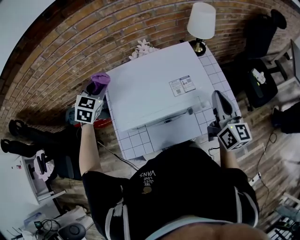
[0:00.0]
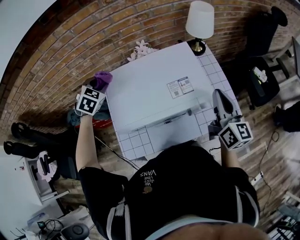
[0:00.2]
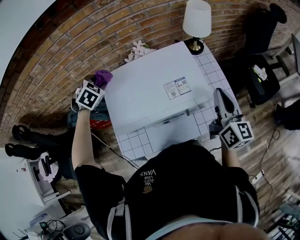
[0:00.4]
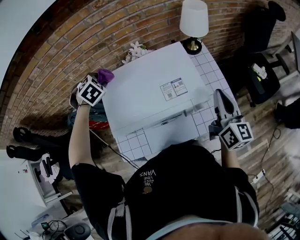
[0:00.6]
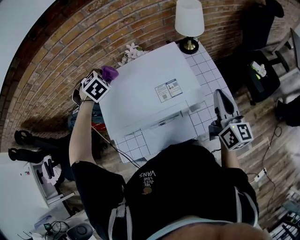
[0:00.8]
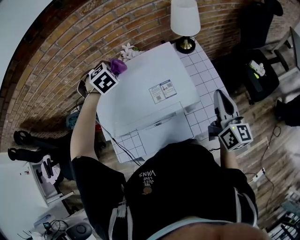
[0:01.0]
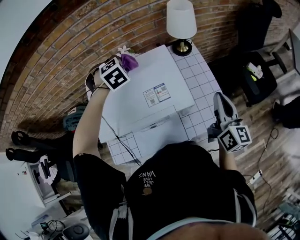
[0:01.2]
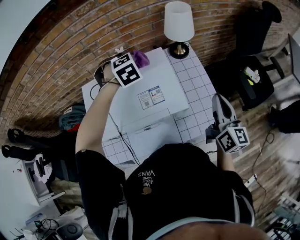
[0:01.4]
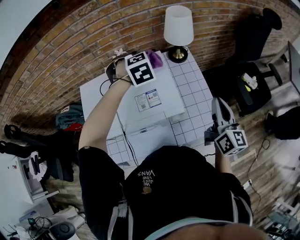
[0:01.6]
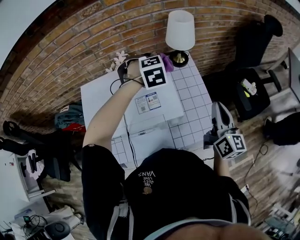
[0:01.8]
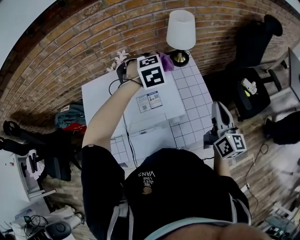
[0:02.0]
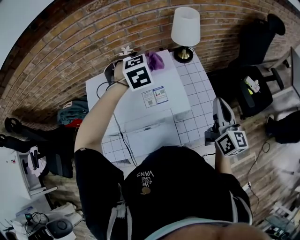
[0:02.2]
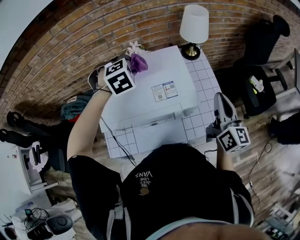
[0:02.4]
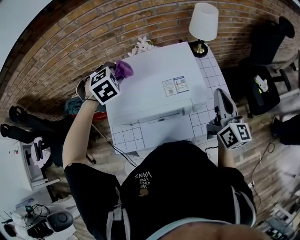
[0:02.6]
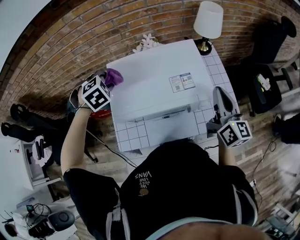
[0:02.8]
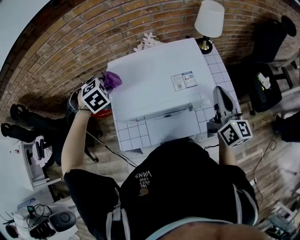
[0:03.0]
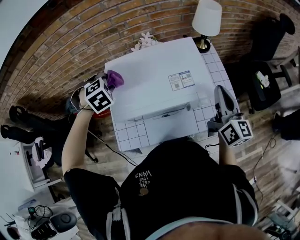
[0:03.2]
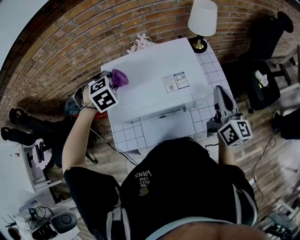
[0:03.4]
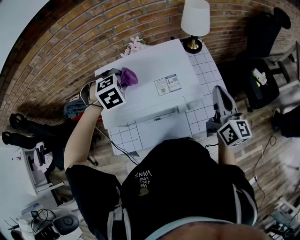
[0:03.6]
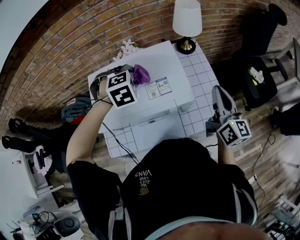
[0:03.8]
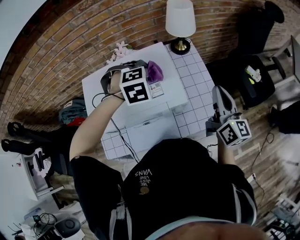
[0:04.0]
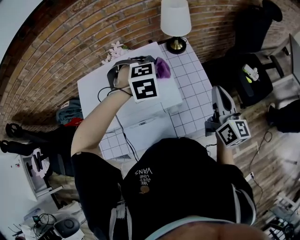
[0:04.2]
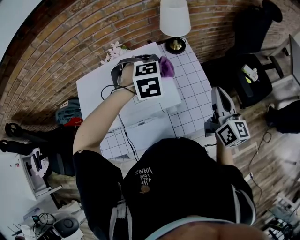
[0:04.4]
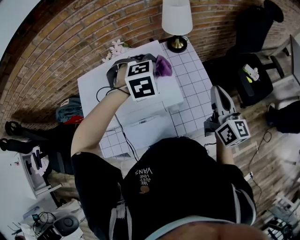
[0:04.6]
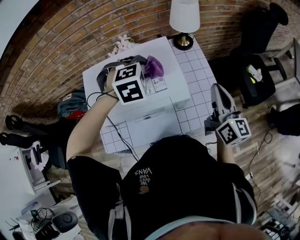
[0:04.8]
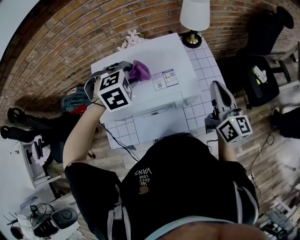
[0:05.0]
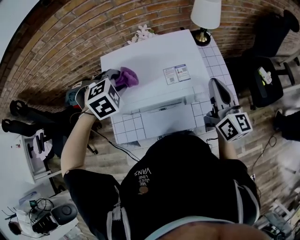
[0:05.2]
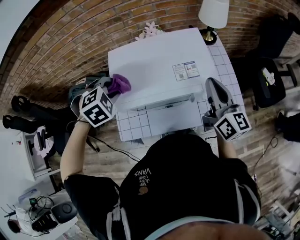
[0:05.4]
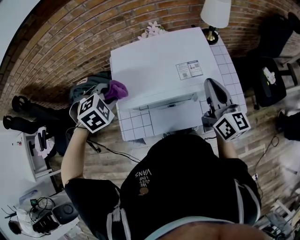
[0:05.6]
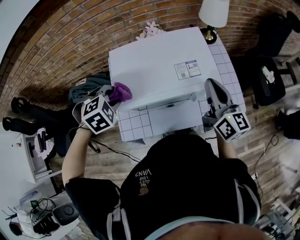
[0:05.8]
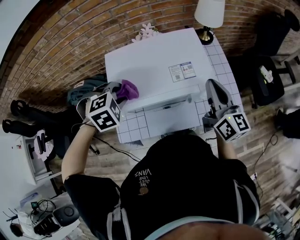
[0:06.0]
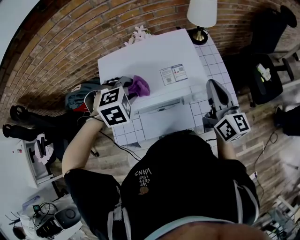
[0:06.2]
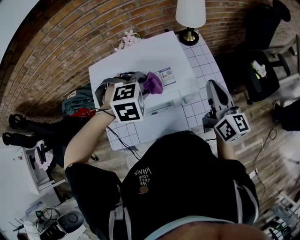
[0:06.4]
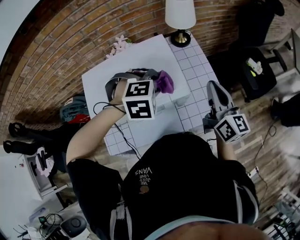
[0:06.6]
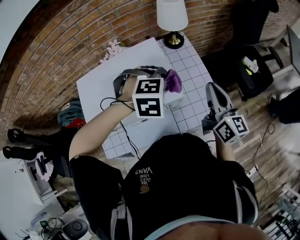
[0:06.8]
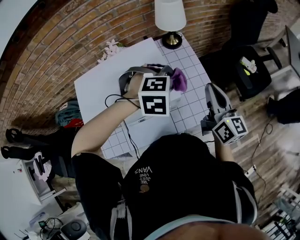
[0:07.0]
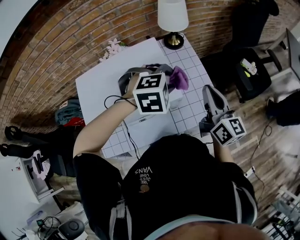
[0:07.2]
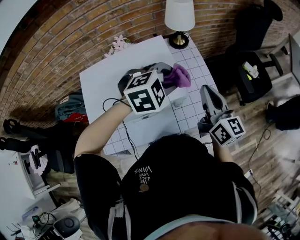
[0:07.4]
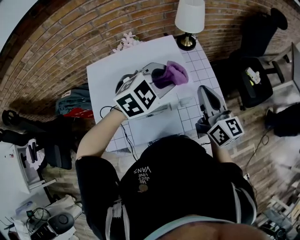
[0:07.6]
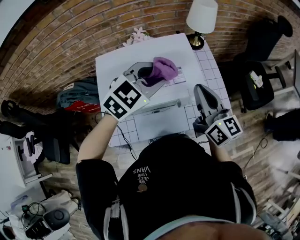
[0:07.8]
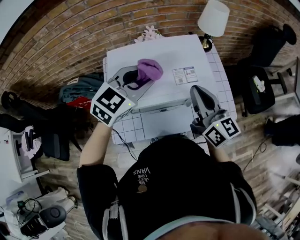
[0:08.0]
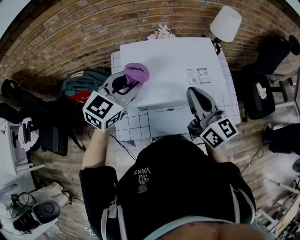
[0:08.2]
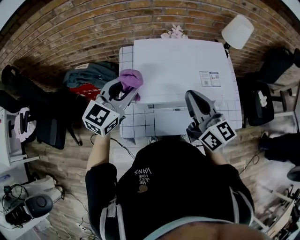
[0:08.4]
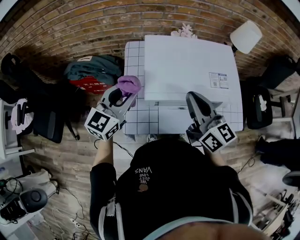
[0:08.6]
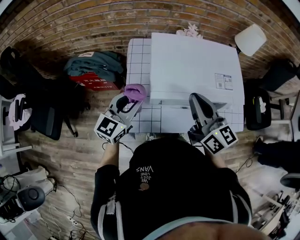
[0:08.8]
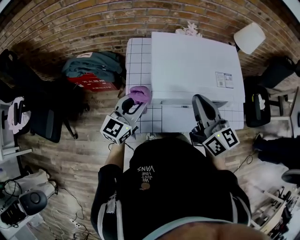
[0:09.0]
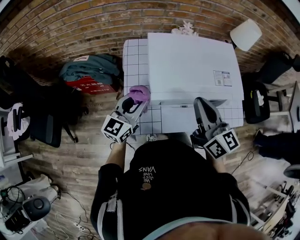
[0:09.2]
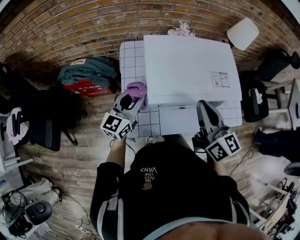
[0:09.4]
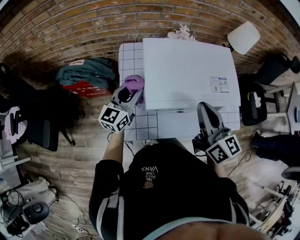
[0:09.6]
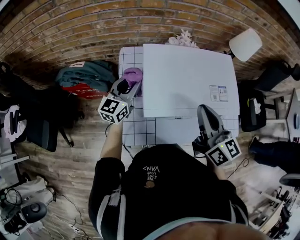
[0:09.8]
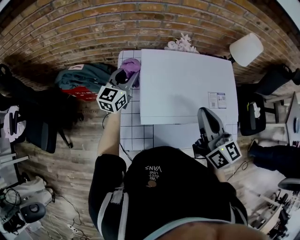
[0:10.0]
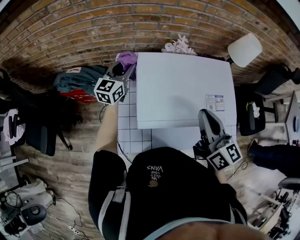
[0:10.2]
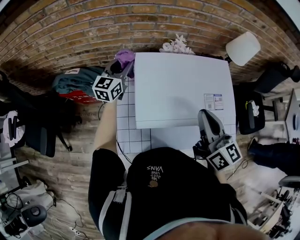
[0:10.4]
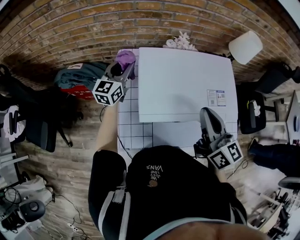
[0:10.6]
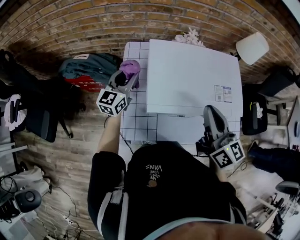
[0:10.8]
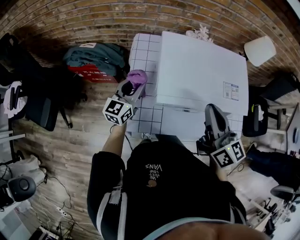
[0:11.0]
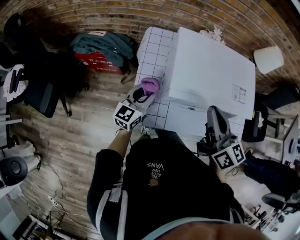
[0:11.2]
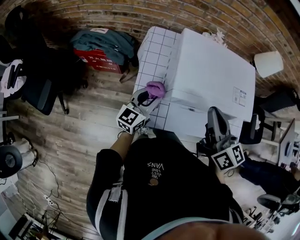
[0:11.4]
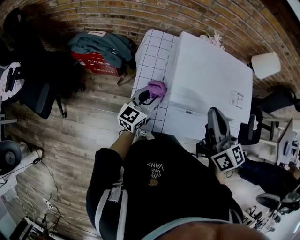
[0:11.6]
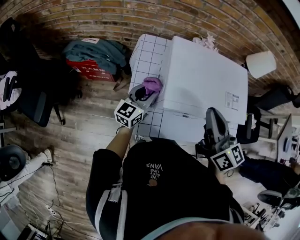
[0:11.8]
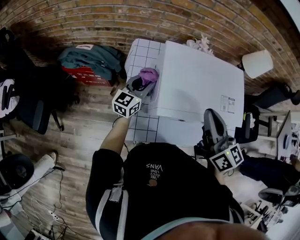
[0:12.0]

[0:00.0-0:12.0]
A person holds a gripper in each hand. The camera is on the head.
0:00.0 to 0:01.6: The right gripper moves to the right, some 15 cm. The left gripper heads to the right, covering approximately 35 cm, and rotates roughly 40 degrees.
0:01.6 to 0:03.0: The right gripper travels to the left by approximately 15 cm; the left gripper moves to the left and backward, approximately 35 cm.
0:03.0 to 0:04.4: The left gripper is displaced to the right by roughly 40 cm, and changes its angle by about 30 degrees, while the right gripper travels to the right by roughly 15 cm.
0:04.4 to 0:06.0: The left gripper moves to the left and backward, about 35 cm. Meanwhile the right gripper goes some 20 cm to the left.
0:06.0 to 0:07.6: The left gripper changes place by about 30 cm, and points its fingers some 30 degrees further upward.
0:07.6 to 0:09.0: The right gripper moves roughly 30 cm, while the left gripper ends up some 40 cm from where it was, and angles its fingers upward, by some 30 degrees.
0:09.0 to 0:10.4: The right gripper moves to the right and forward, approximately 10 cm. Meanwhile the left gripper heads forward, covering some 25 cm.
0:10.4 to 0:12.0: The right gripper is displaced to the left by roughly 5 cm. The left gripper shifts approximately 15 cm backward and downward.

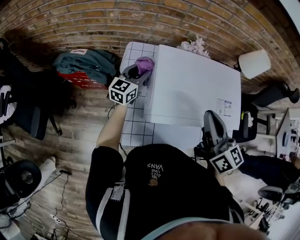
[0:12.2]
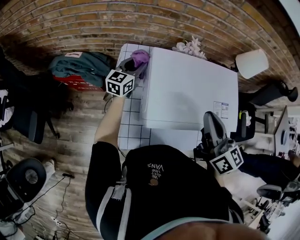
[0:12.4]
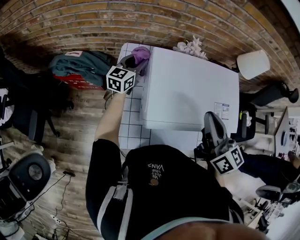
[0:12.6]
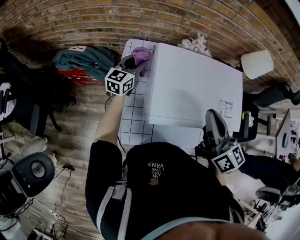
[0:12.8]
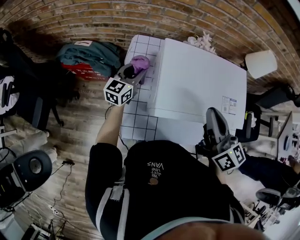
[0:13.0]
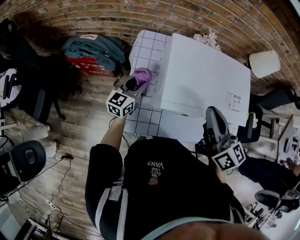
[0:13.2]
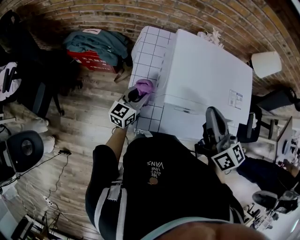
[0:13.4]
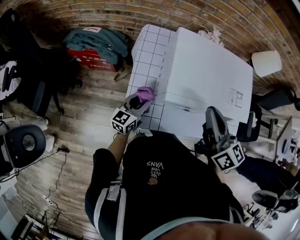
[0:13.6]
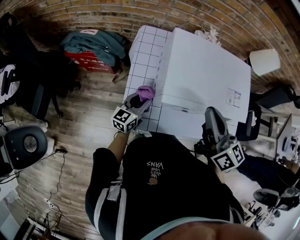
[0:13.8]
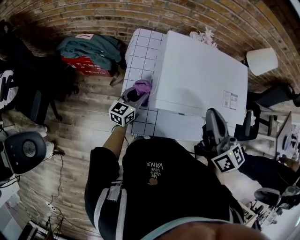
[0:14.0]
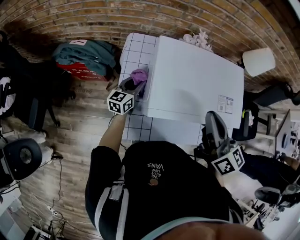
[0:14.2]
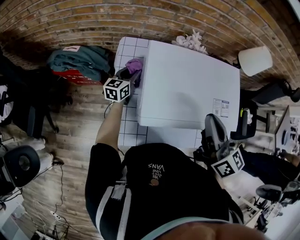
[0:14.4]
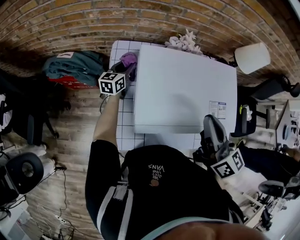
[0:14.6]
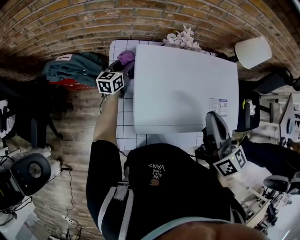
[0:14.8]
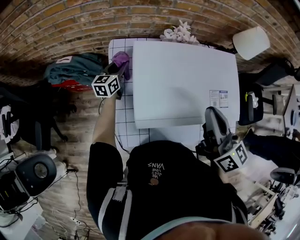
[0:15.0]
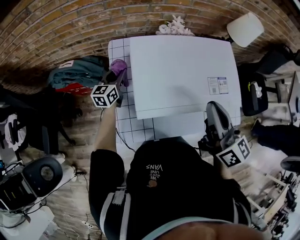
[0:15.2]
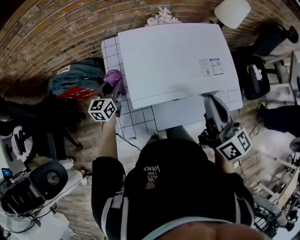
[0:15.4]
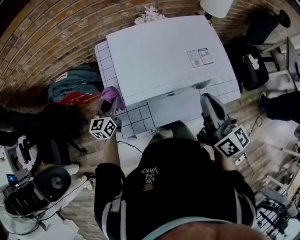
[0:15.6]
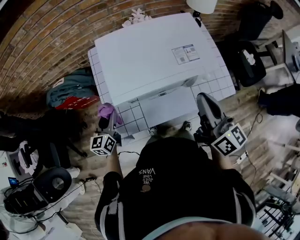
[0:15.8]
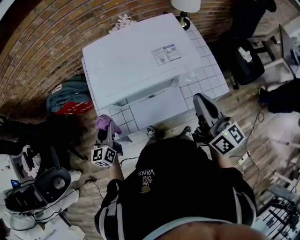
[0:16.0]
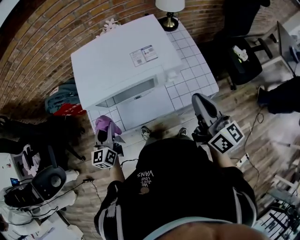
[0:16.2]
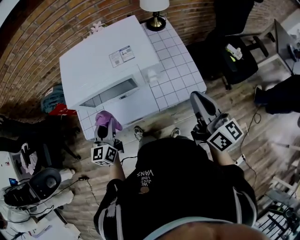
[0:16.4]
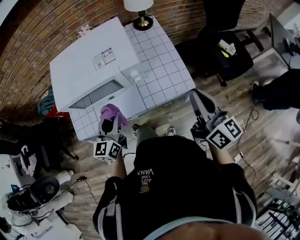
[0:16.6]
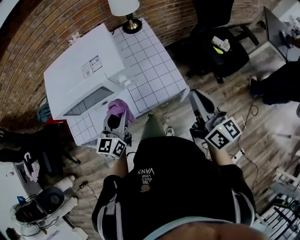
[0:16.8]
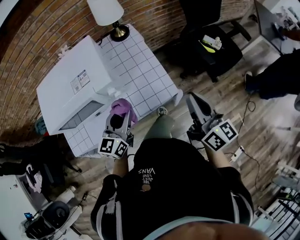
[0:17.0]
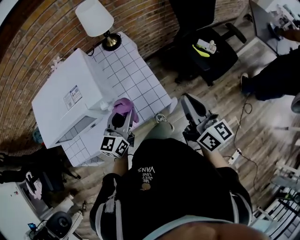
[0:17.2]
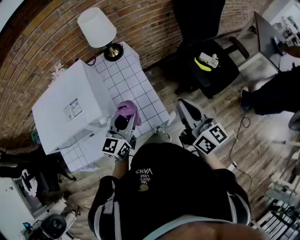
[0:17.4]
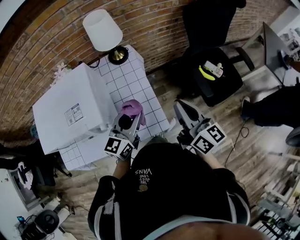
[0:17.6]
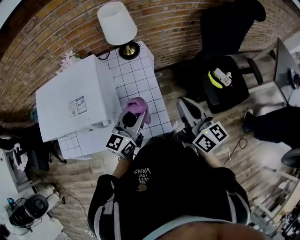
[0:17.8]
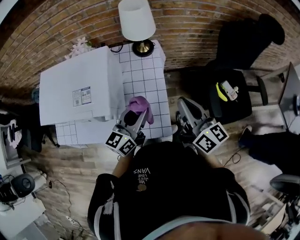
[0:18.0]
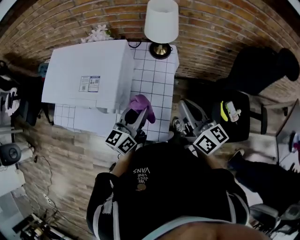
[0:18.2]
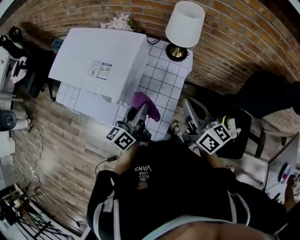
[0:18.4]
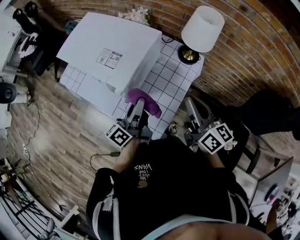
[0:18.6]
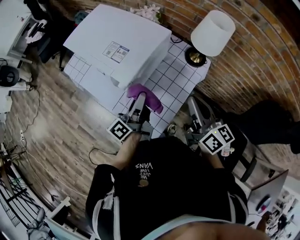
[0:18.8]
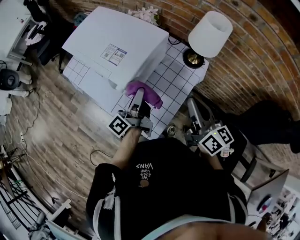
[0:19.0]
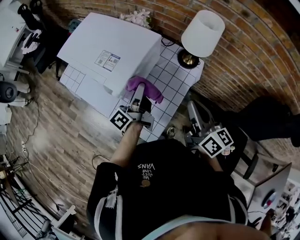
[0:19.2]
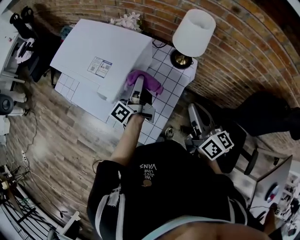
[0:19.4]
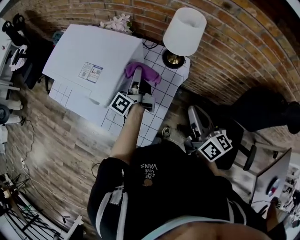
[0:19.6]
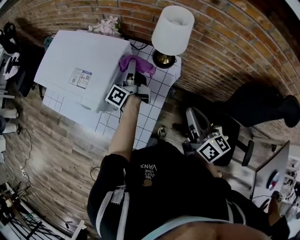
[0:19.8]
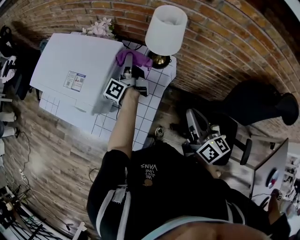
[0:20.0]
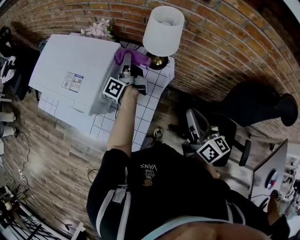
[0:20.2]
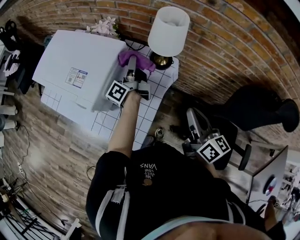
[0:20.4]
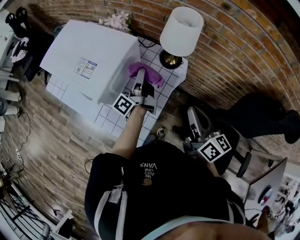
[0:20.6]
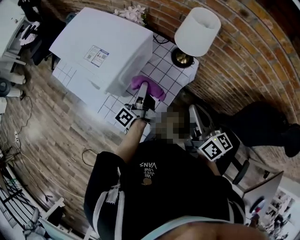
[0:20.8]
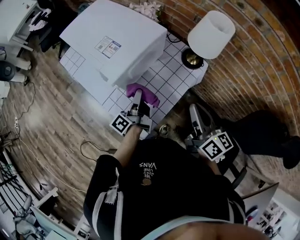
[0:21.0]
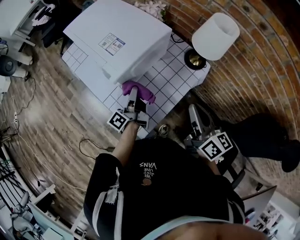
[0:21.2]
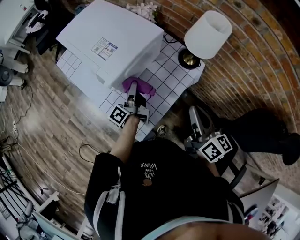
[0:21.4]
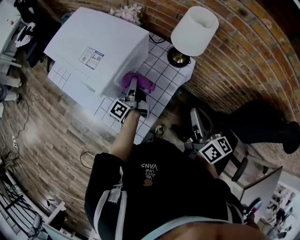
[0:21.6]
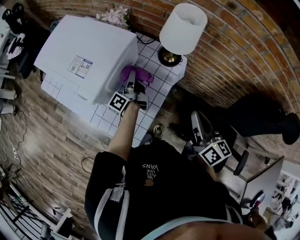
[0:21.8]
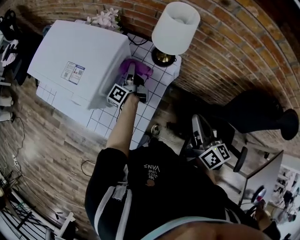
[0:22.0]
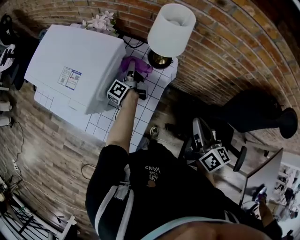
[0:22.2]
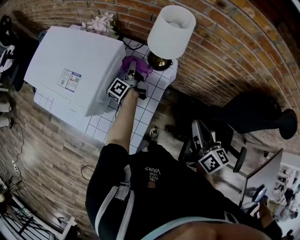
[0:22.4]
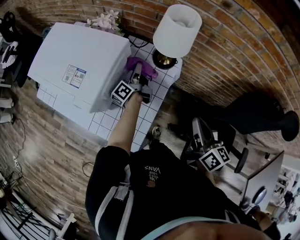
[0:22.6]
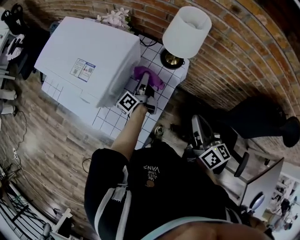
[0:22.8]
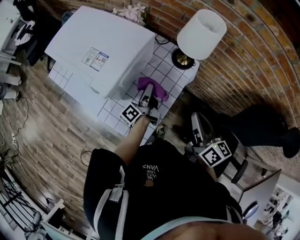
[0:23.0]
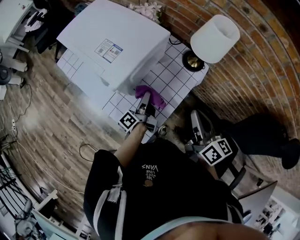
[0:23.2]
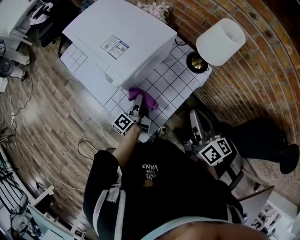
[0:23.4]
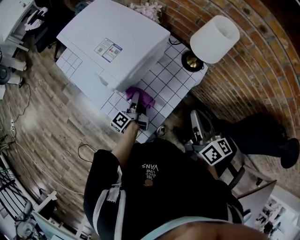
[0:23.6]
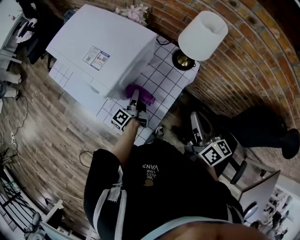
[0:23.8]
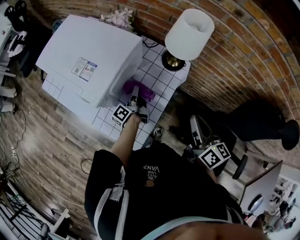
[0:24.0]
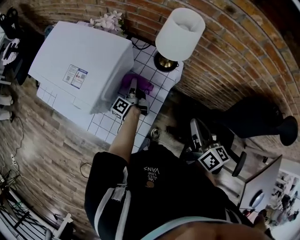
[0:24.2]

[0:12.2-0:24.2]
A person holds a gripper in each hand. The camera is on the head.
0:12.2 to 0:13.8: The left gripper goes some 20 cm backward; the right gripper ends up approximately 5 cm from where it was.
0:13.8 to 0:15.2: The right gripper shifts some 10 cm to the right; the left gripper heads forward, covering roughly 20 cm.
0:15.2 to 0:16.6: The pair of grippers is taken to the right and backward, roughly 40 cm.
0:16.6 to 0:18.2: The left gripper changes place by approximately 30 cm, and rotates about 20 degrees, while the right gripper ends up roughly 25 cm from where it was, and changes its angle by approximately 30 degrees.
0:18.2 to 0:19.8: The left gripper ends up approximately 20 cm from where it was, and swivels some 60 degrees. The right gripper moves about 10 cm.
0:19.8 to 0:21.2: The left gripper is displaced backward, to the left and downward by some 20 cm. The right gripper moves to the left, approximately 5 cm, and swivels some 20 degrees.
0:21.2 to 0:22.6: The left gripper heads forward and to the right, covering about 25 cm. Meanwhile the right gripper heads to the right, covering approximately 10 cm, and rotates some 20 degrees.
0:22.6 to 0:24.2: The left gripper shifts roughly 5 cm downward, and goes backward and returns, roughly 20 cm each way. Meanwhile the right gripper moves some 10 cm to the left and comes back.
